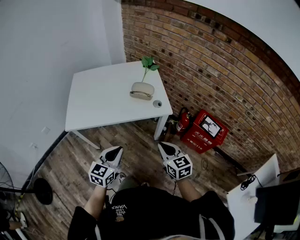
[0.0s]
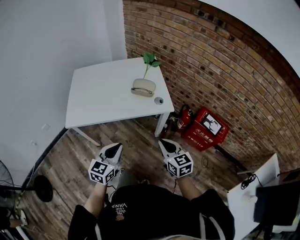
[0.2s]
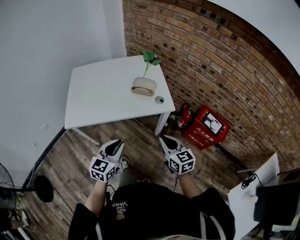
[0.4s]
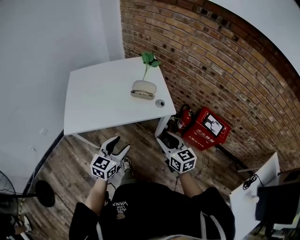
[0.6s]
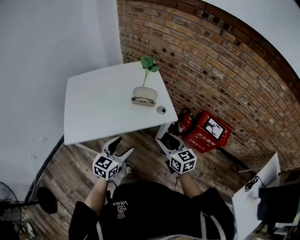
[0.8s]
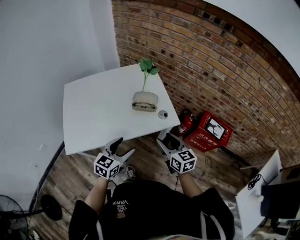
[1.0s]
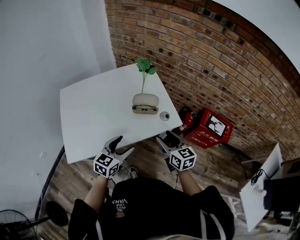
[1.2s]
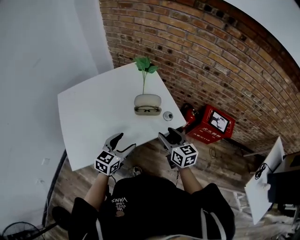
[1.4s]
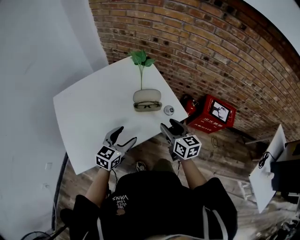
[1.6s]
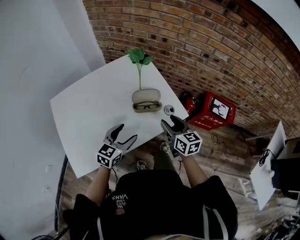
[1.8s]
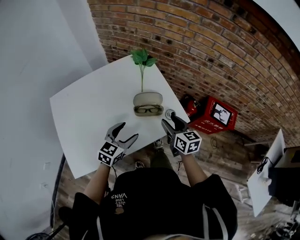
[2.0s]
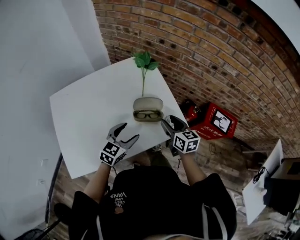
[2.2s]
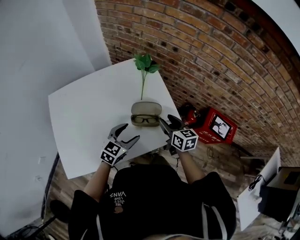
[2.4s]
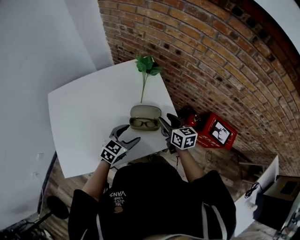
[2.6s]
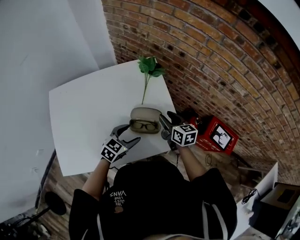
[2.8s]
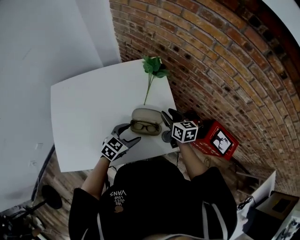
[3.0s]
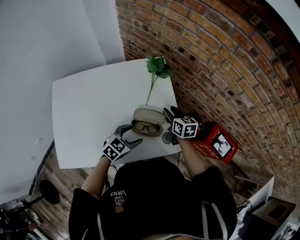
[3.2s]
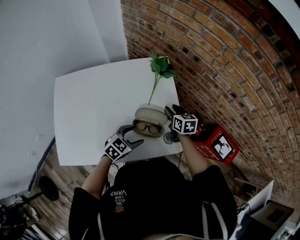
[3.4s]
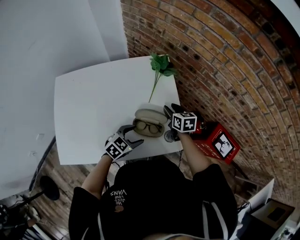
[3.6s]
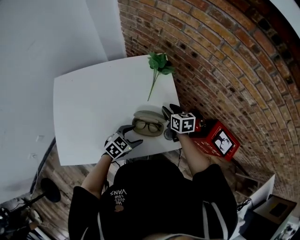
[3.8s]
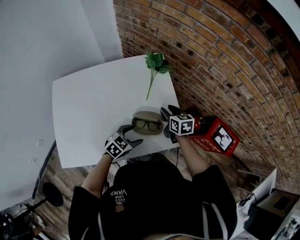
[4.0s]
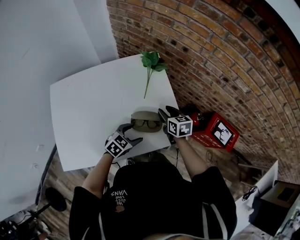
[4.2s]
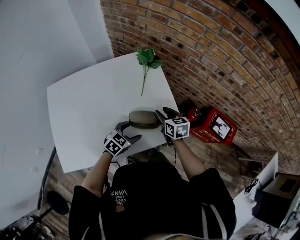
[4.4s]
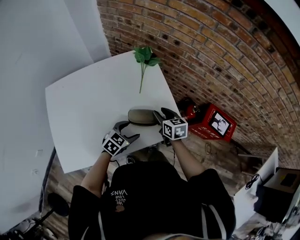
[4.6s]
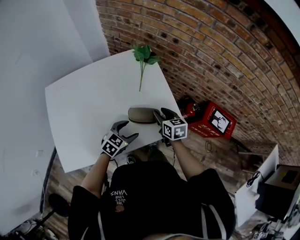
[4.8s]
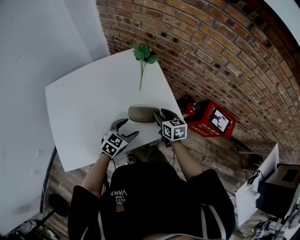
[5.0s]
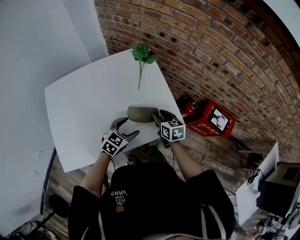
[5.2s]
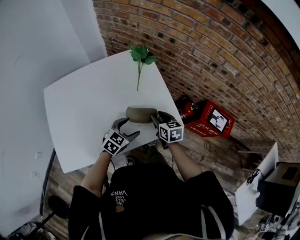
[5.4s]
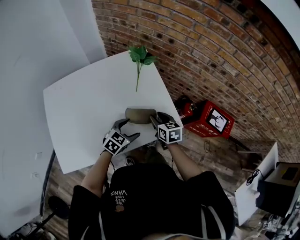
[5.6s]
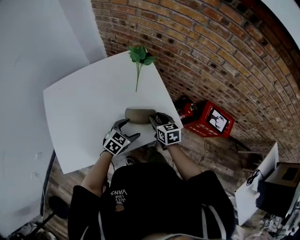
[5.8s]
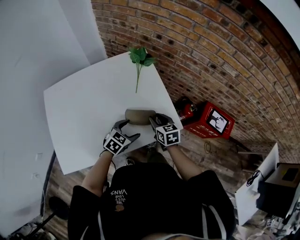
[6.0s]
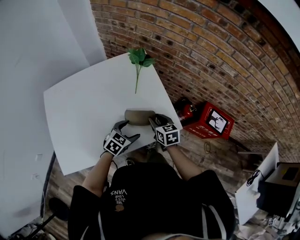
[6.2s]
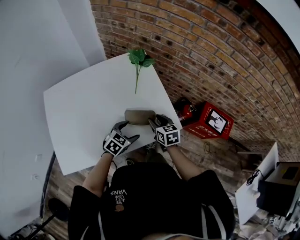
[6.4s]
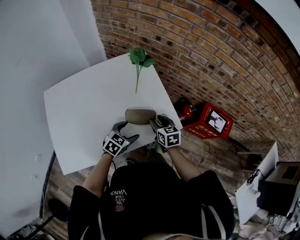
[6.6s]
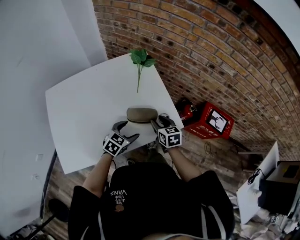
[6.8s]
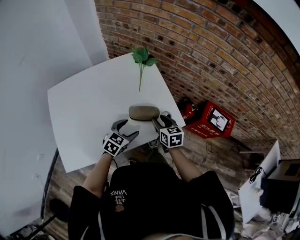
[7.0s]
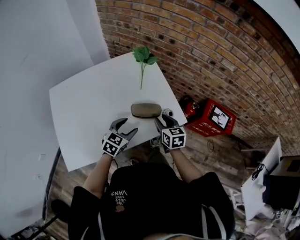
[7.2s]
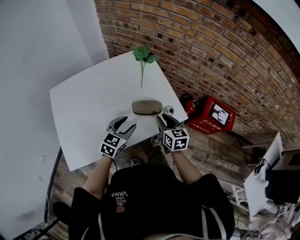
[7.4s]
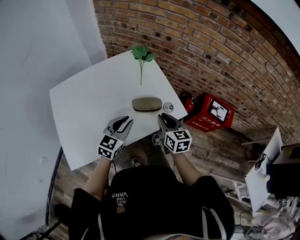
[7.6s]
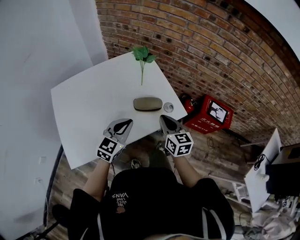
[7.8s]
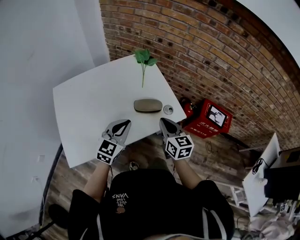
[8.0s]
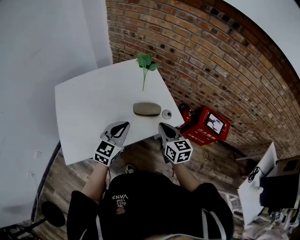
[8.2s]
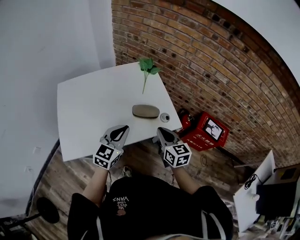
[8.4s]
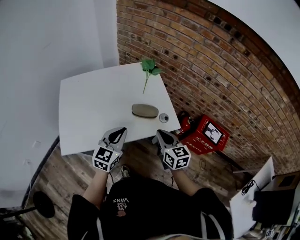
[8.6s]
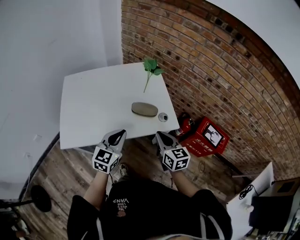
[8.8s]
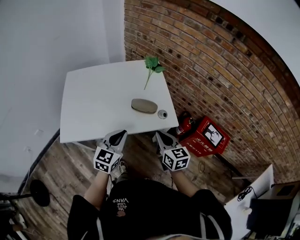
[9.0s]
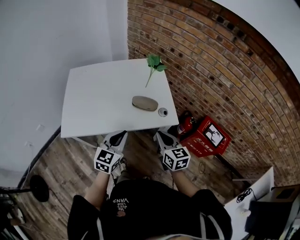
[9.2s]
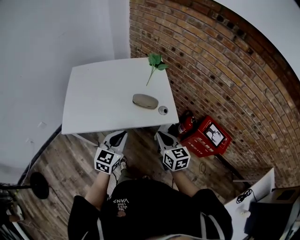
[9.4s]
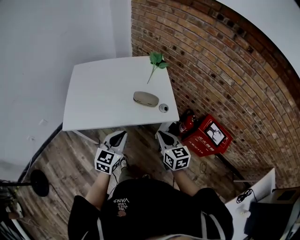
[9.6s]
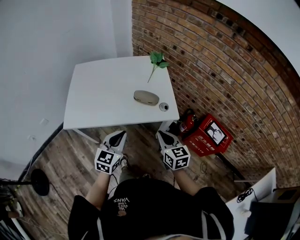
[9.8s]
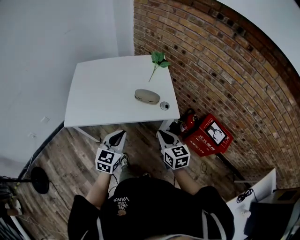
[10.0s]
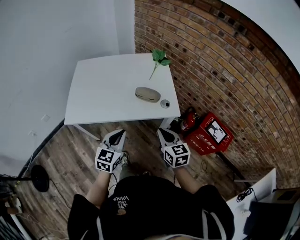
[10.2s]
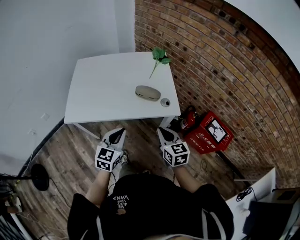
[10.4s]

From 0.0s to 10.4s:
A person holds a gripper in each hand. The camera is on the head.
From 0.0s to 1.4s: The grippers both shift forward by some 25 cm. The right gripper swivels roughly 20 degrees, and opens its fingers. The left gripper turns by some 20 degrees, and opens its fingers.
From 1.4s to 3.0s: The right gripper shifts approximately 25 cm forward. The left gripper moves forward and downward, some 20 cm.
From 3.0s to 4.4s: The right gripper goes roughly 5 cm backward, while the left gripper ends up some 5 cm from where it was.
From 4.4s to 6.0s: The right gripper travels backward by approximately 5 cm.
From 6.0s to 7.4s: The left gripper heads upward and to the left, covering approximately 10 cm, and closes its fingers; the right gripper shifts some 10 cm backward and upward.
From 7.4s to 9.0s: Both grippers travel together backward and upward, roughly 15 cm. The right gripper closes its fingers, while the left gripper rotates about 20 degrees, and closes its fingers.
From 9.0s to 10.4s: The grippers both shift backward by approximately 5 cm.

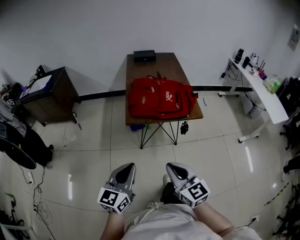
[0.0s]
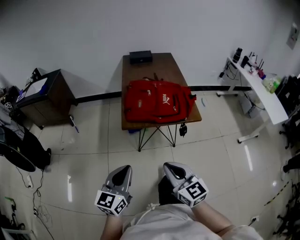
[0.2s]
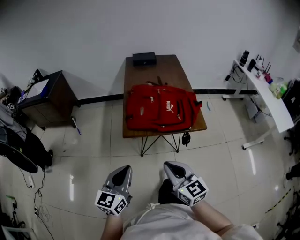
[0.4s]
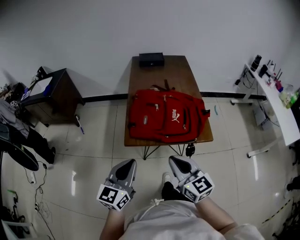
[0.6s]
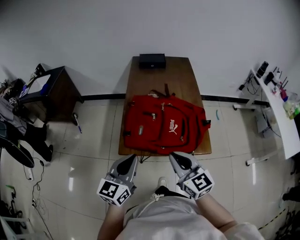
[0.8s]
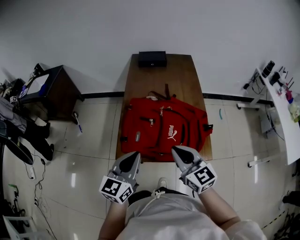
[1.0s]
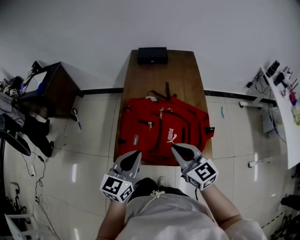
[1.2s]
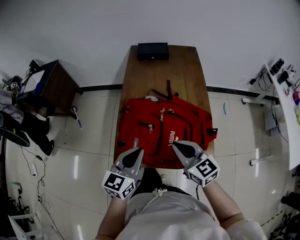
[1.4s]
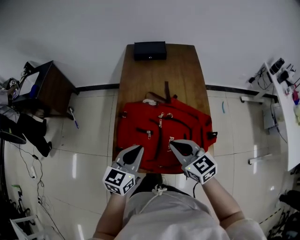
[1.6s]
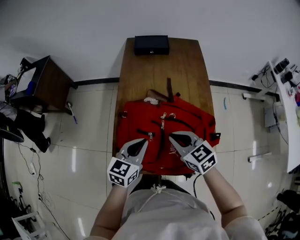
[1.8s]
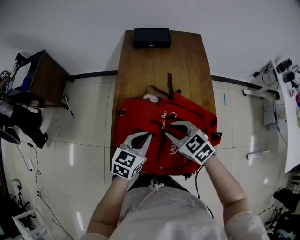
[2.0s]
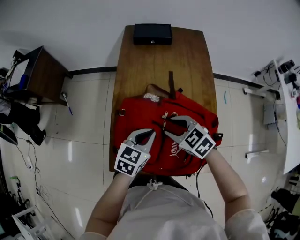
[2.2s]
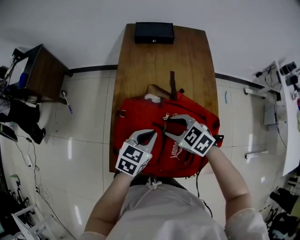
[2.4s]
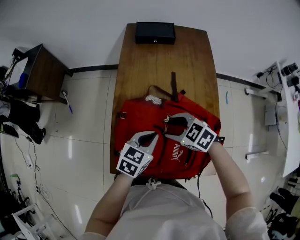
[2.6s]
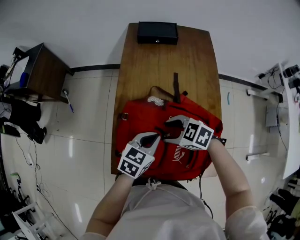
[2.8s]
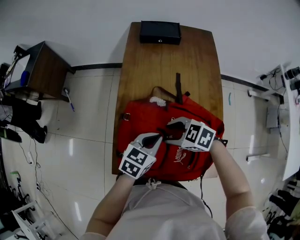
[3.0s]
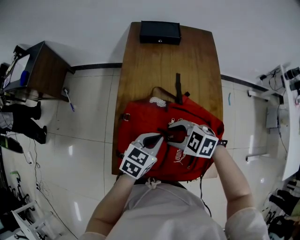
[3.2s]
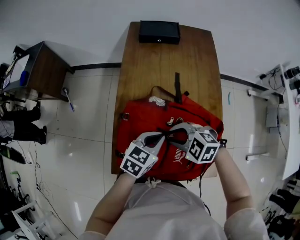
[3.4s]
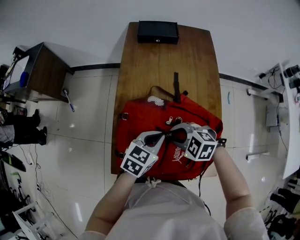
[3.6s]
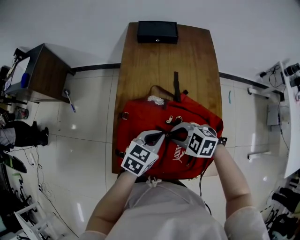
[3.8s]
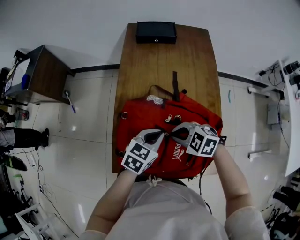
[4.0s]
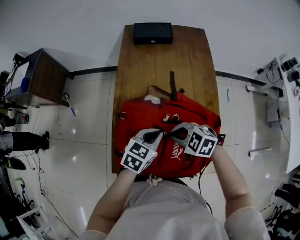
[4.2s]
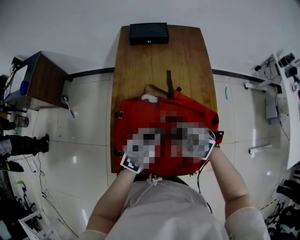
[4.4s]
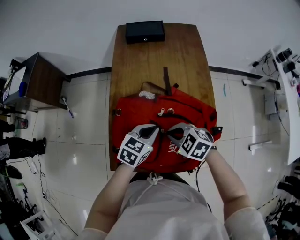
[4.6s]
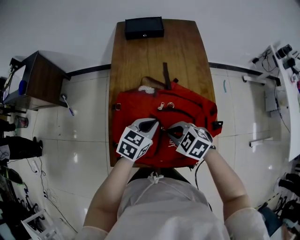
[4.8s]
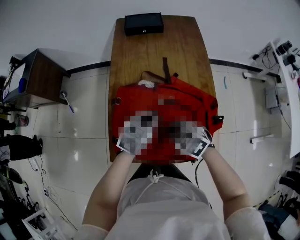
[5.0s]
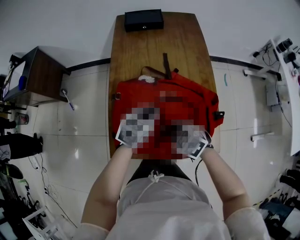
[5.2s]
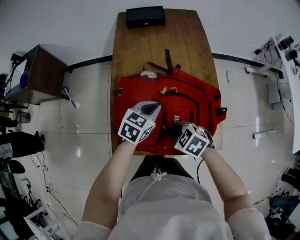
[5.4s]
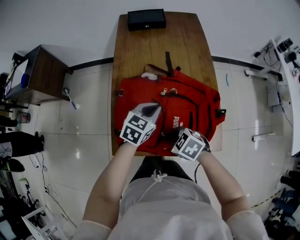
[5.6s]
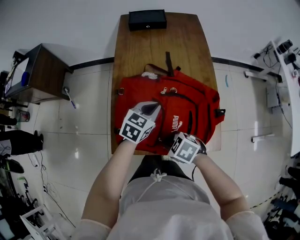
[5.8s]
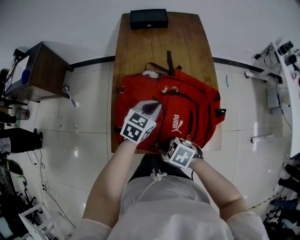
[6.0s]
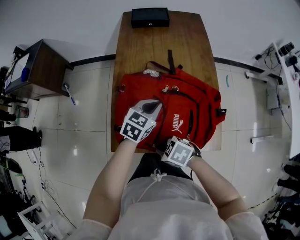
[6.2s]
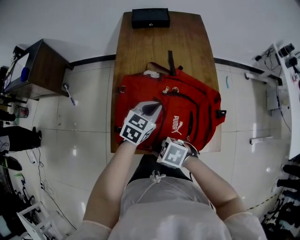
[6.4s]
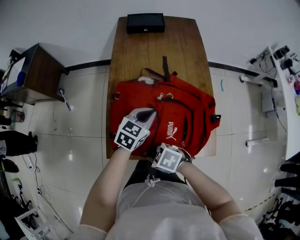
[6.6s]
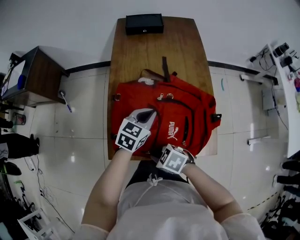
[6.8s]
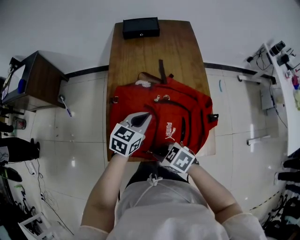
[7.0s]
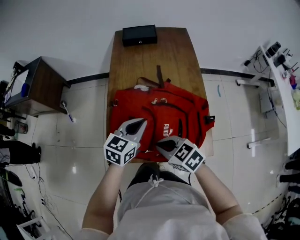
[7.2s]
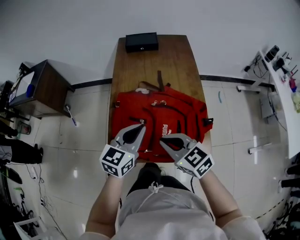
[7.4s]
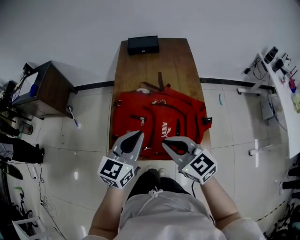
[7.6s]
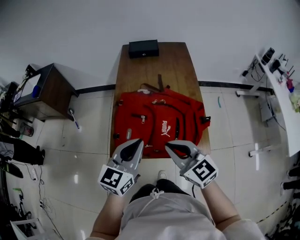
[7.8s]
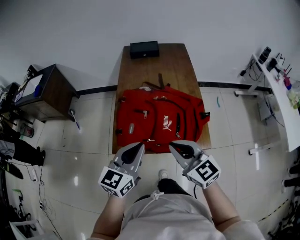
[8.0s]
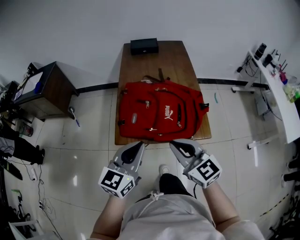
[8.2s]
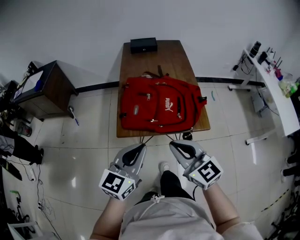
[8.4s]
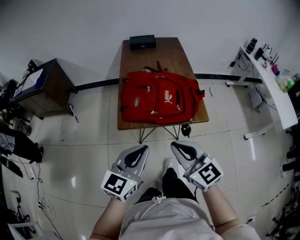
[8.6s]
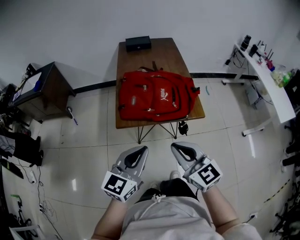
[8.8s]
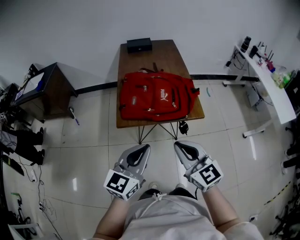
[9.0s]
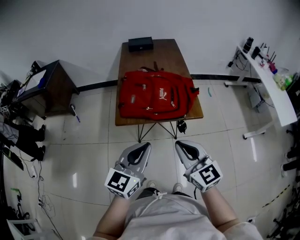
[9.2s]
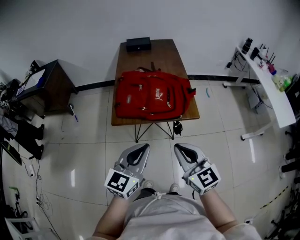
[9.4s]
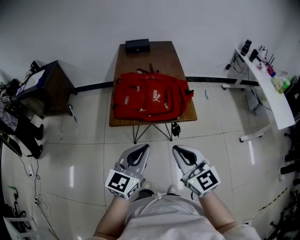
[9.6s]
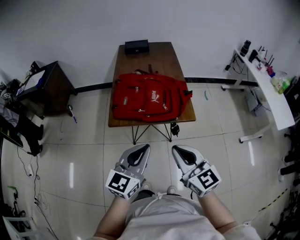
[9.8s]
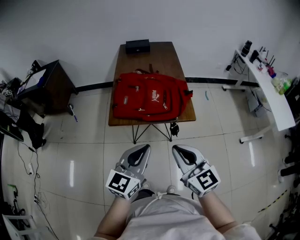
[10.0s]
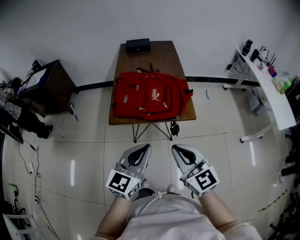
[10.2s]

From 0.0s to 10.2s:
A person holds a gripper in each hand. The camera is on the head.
From 0.0s to 1.4s: Both grippers are carried forward, about 50 cm.
From 1.4s to 3.0s: The right gripper ends up about 20 cm from where it was, swivels approximately 50 degrees, and opens; the left gripper moves roughly 20 cm, and rotates roughly 30 degrees.
From 3.0s to 4.4s: The right gripper closes.
From 4.4s to 5.8s: The right gripper changes place by about 15 cm, and turns by approximately 20 degrees.
From 5.8s to 7.2s: The two grippers go roughly 5 cm upward. The right gripper turns by some 20 degrees.
From 7.2s to 8.8s: The right gripper goes roughly 35 cm backward and upward, and swivels some 40 degrees; the left gripper goes approximately 40 cm backward.
From 8.8s to 10.2s: The grippers both shift to the right by roughly 10 cm.

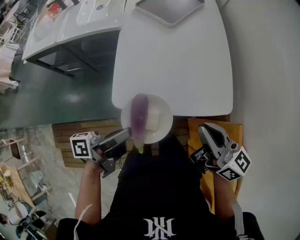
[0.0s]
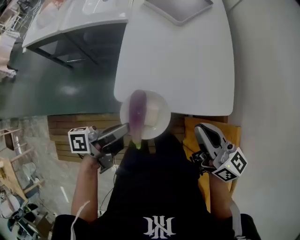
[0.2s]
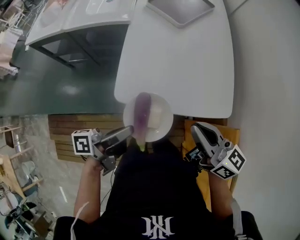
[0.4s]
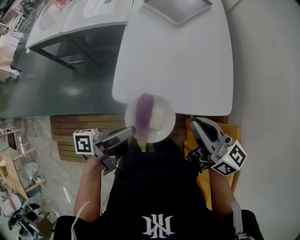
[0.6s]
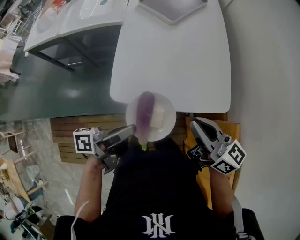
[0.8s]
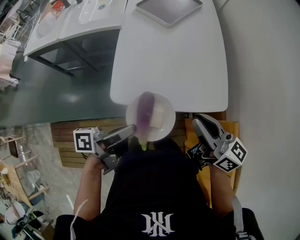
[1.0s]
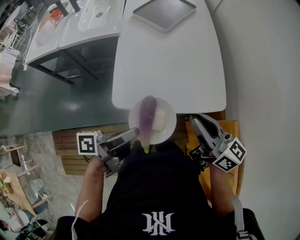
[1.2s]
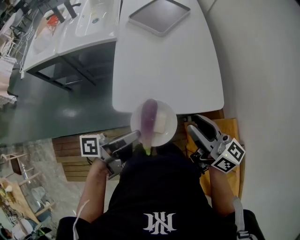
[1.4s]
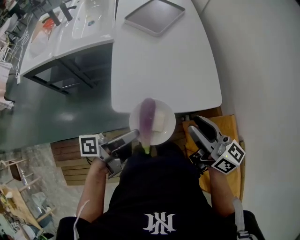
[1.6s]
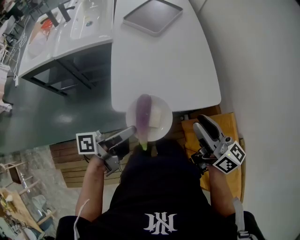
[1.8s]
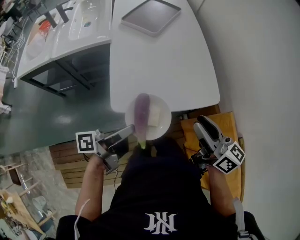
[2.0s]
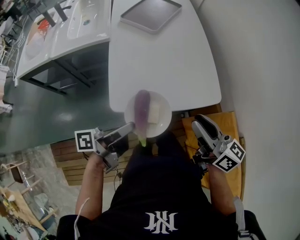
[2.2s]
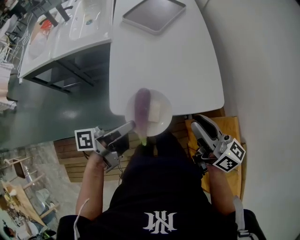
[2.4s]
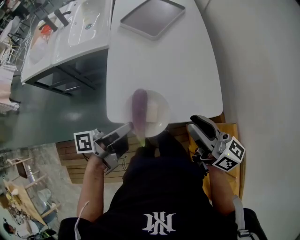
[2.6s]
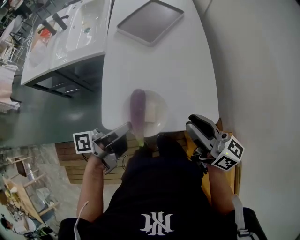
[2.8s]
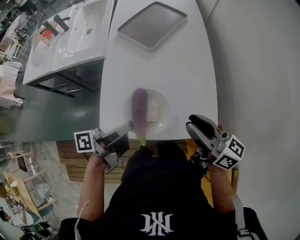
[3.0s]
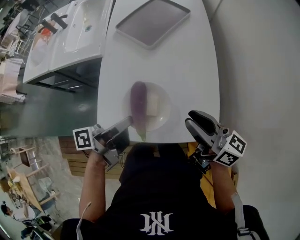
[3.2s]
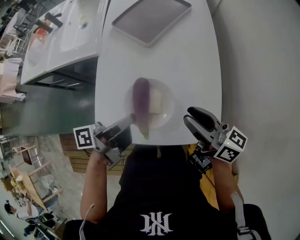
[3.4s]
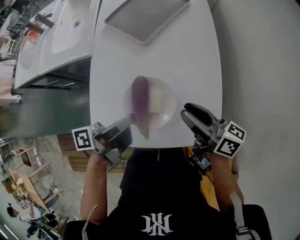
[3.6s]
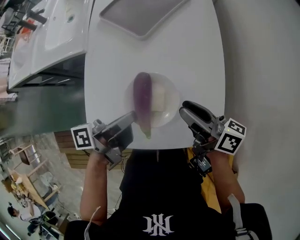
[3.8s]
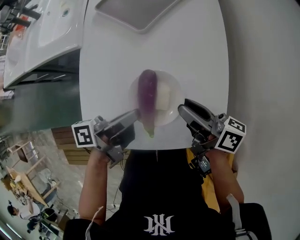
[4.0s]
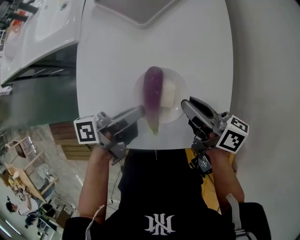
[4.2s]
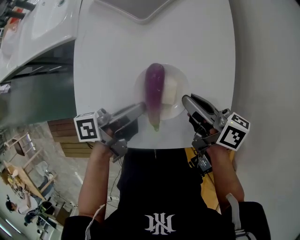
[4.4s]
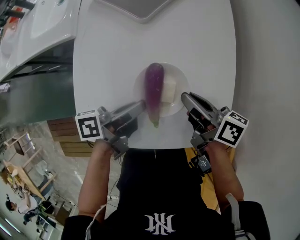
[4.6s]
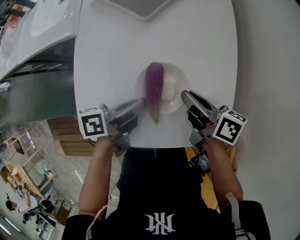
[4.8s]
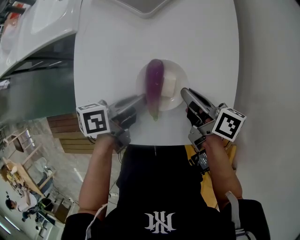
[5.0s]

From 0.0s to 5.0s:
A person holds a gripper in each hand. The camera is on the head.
From 0.0s to 1.6s: The right gripper moves about 5 cm, and opens.
From 1.6s to 3.4s: The right gripper changes place by approximately 25 cm.
From 3.4s to 5.0s: The right gripper goes approximately 15 cm downward, and changes its angle by about 30 degrees.
